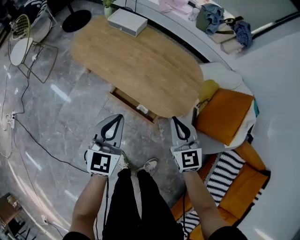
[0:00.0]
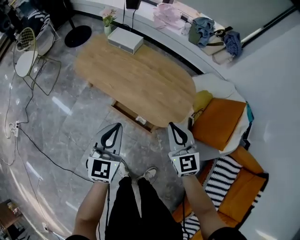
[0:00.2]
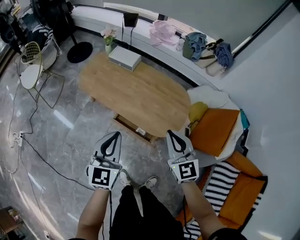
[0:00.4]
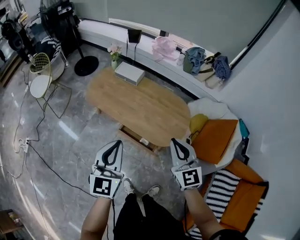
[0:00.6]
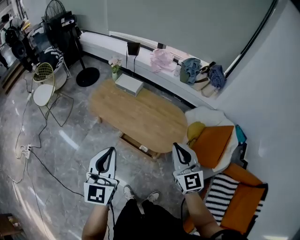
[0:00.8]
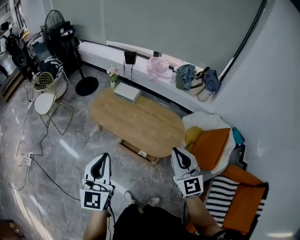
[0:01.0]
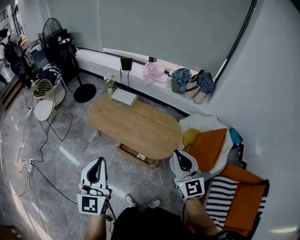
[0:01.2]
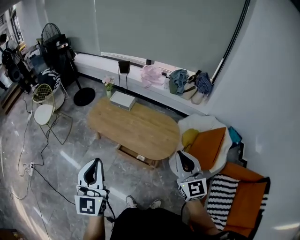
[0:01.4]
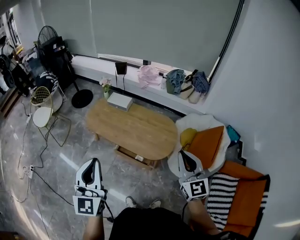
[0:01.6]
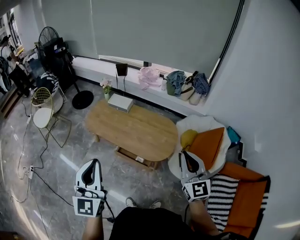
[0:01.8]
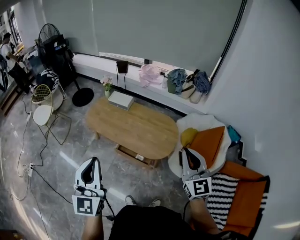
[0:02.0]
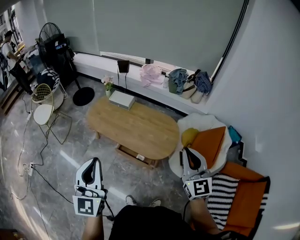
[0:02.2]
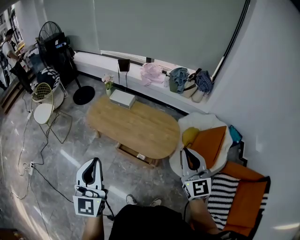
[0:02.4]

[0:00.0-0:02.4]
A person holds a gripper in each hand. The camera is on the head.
0:00.0 to 0:01.2: The grippers both shift upward by about 35 cm.
0:01.2 to 0:02.4: The right gripper changes place by about 5 cm.

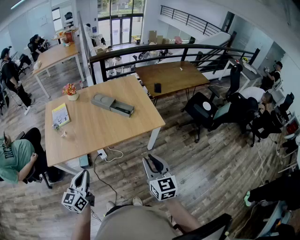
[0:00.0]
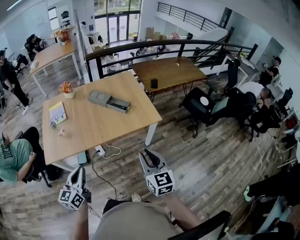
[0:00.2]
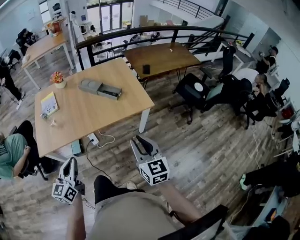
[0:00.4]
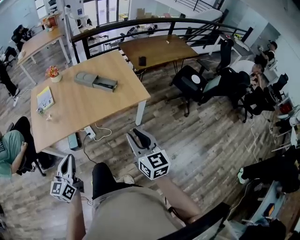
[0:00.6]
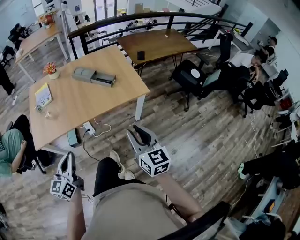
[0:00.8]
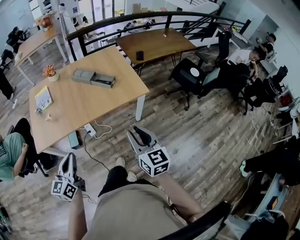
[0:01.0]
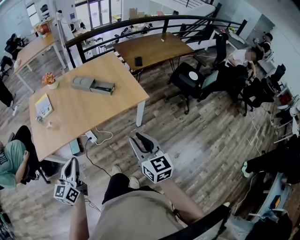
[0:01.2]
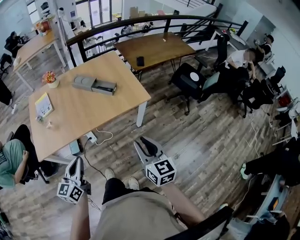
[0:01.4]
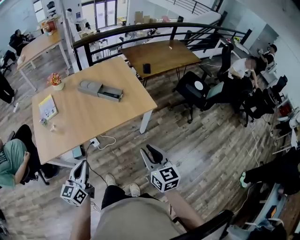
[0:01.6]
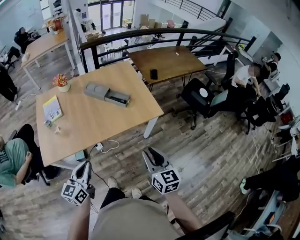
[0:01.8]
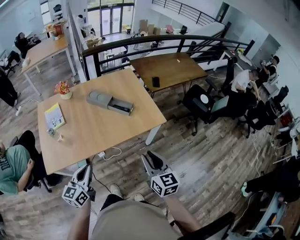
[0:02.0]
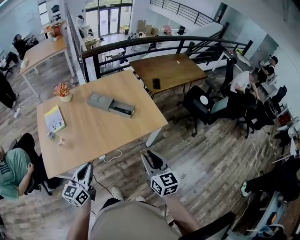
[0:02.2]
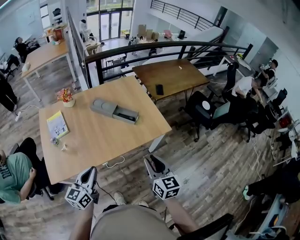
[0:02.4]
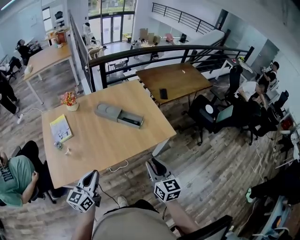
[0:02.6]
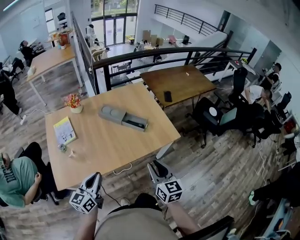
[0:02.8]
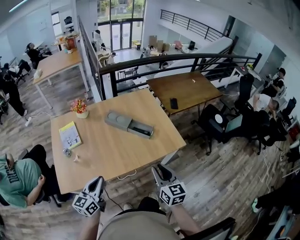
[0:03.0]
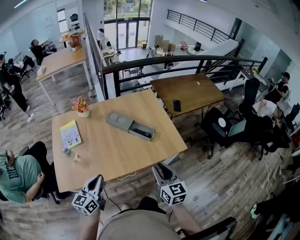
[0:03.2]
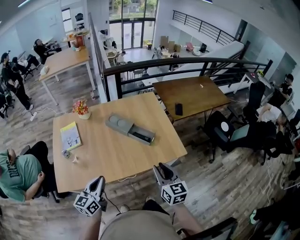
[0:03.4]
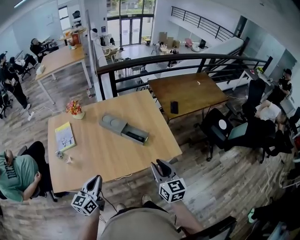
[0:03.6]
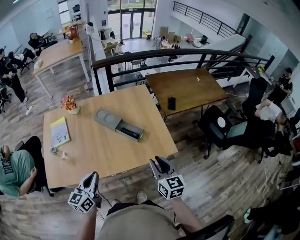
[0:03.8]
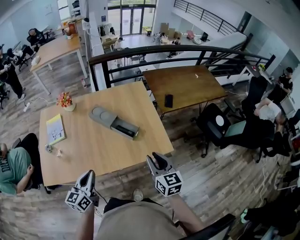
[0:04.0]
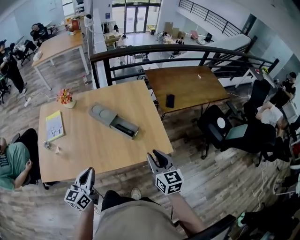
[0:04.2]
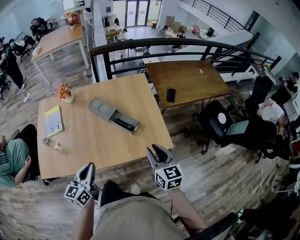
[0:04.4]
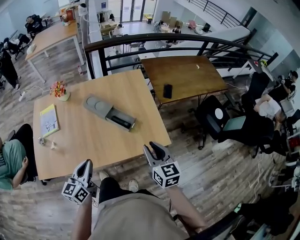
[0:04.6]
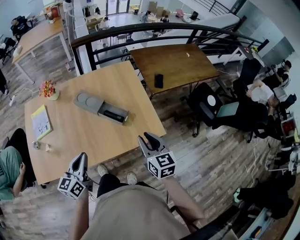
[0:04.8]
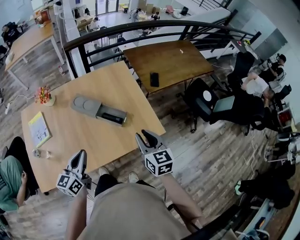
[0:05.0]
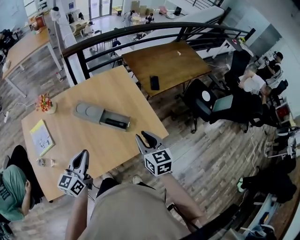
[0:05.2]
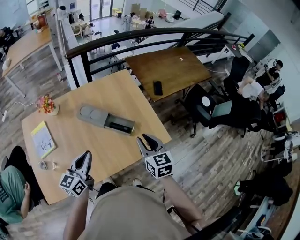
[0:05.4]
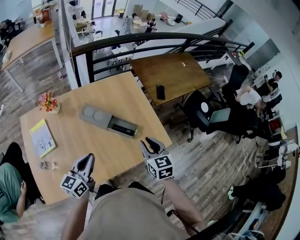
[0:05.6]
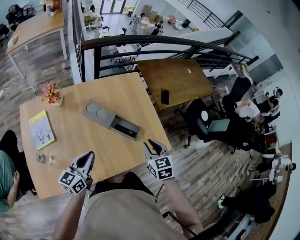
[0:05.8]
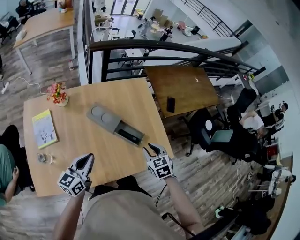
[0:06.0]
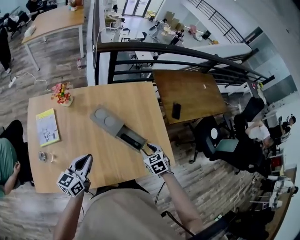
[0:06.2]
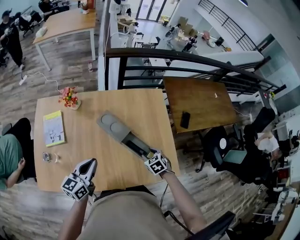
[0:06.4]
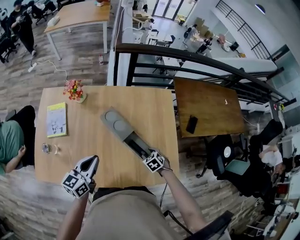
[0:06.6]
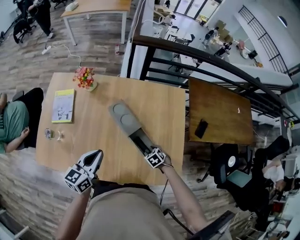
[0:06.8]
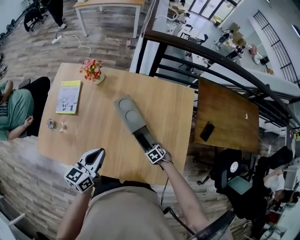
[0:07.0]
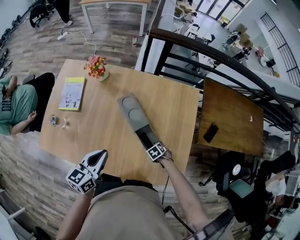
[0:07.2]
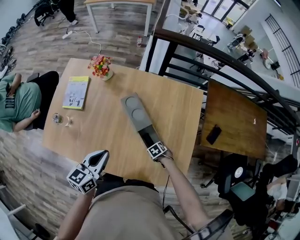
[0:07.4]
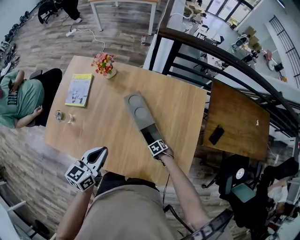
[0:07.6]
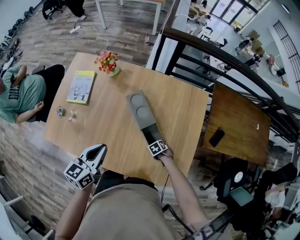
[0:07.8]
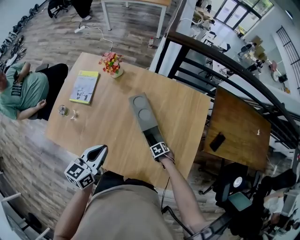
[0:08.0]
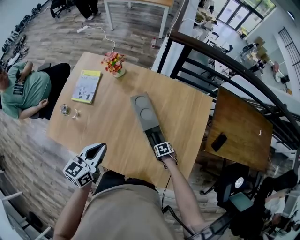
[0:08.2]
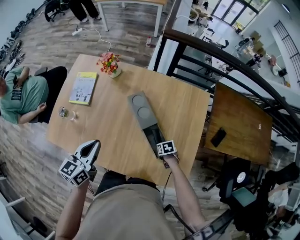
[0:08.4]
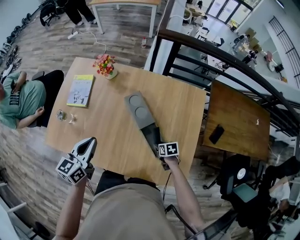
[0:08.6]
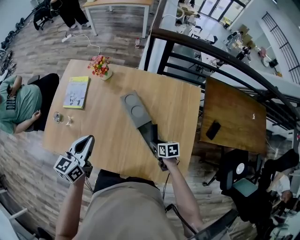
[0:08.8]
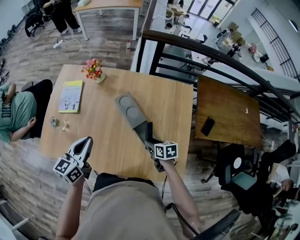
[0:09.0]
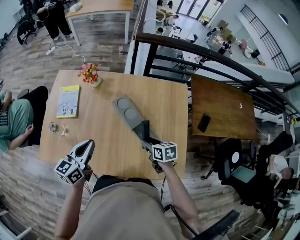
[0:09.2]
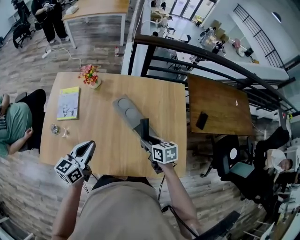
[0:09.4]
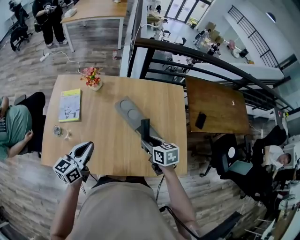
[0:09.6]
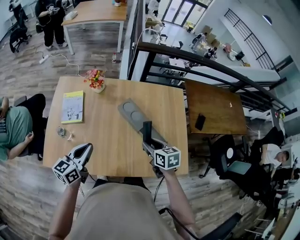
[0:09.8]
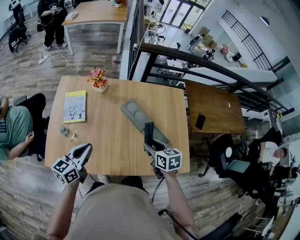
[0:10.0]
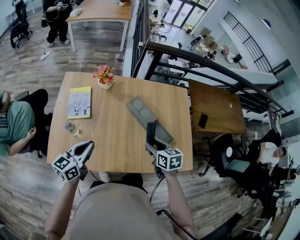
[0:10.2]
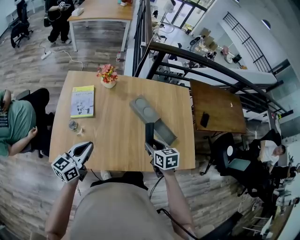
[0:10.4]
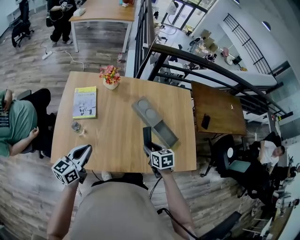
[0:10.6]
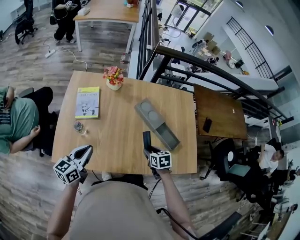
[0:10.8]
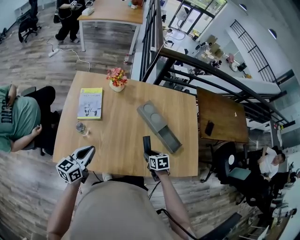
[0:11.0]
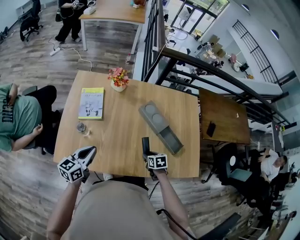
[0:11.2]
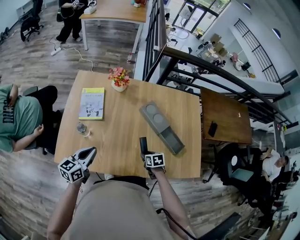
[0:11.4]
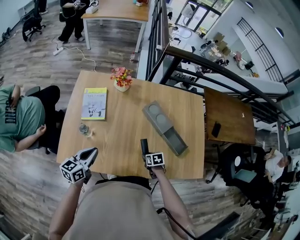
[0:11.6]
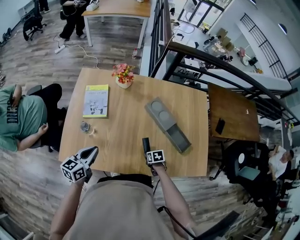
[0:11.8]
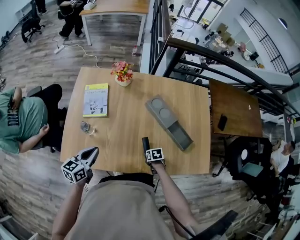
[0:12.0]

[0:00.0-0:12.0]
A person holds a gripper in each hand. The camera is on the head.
0:00.0 to 0:01.6: The left gripper shifts by about 5 cm.
0:01.6 to 0:03.0: Both grippers move to the left and forward, roughly 20 cm.
0:03.0 to 0:04.4: The right gripper travels forward and to the right by some 20 cm; the left gripper is displaced to the right and forward by roughly 20 cm.
0:04.4 to 0:06.0: The left gripper travels forward and to the left by about 20 cm. The right gripper goes about 20 cm to the left, forward and downward, and rotates roughly 30 degrees.
0:06.0 to 0:07.6: The left gripper moves about 5 cm, and rotates roughly 30 degrees, while the right gripper goes some 35 cm downward, and tilts its fingers some 30 degrees downward.
0:07.6 to 0:09.0: The left gripper shifts by roughly 5 cm. The right gripper travels upward by some 20 cm, and tilts its fingers roughly 30 degrees upward.
0:09.0 to 0:10.4: The left gripper travels to the left by about 20 cm, while the right gripper shifts some 25 cm to the left and upward, and turns by approximately 20 degrees.
0:10.4 to 0:12.0: The left gripper heads downward, covering roughly 10 cm, while the right gripper moves downward, roughly 30 cm, and changes its angle by some 30 degrees.

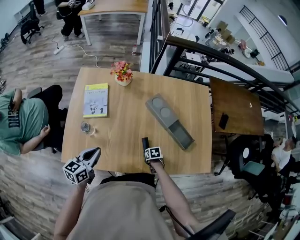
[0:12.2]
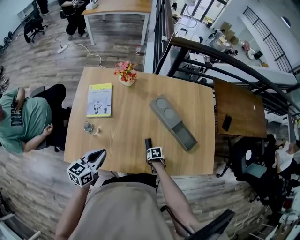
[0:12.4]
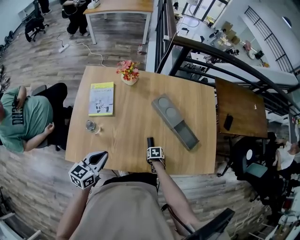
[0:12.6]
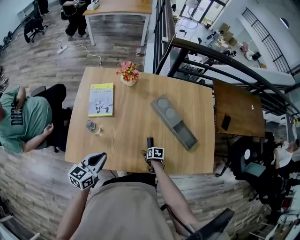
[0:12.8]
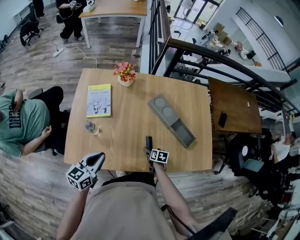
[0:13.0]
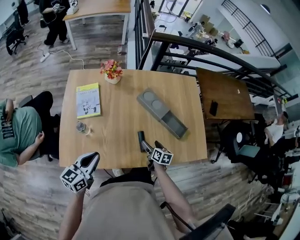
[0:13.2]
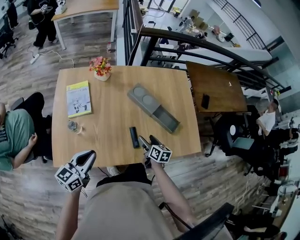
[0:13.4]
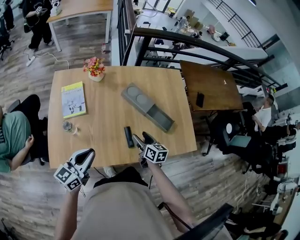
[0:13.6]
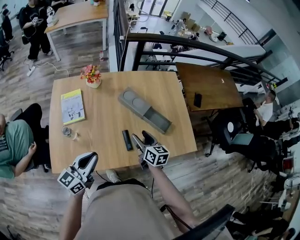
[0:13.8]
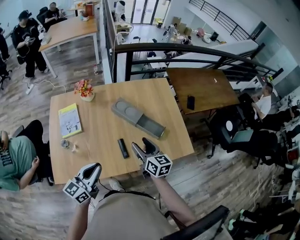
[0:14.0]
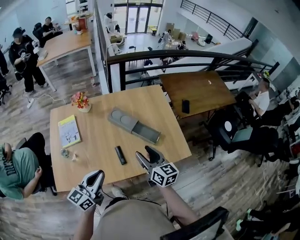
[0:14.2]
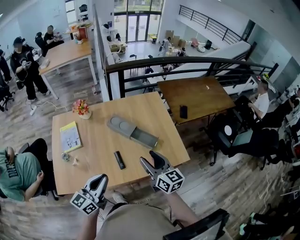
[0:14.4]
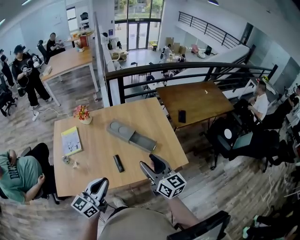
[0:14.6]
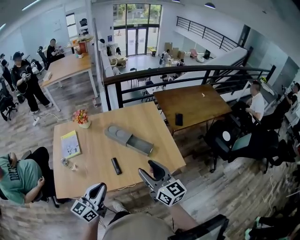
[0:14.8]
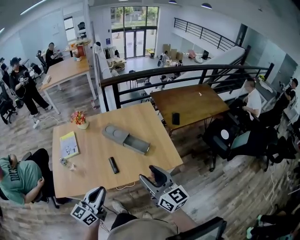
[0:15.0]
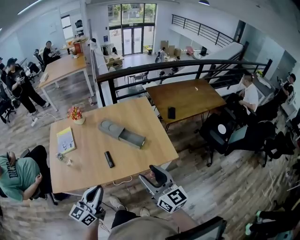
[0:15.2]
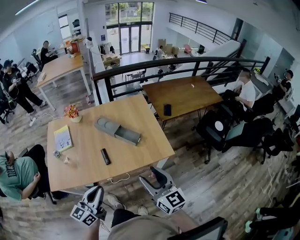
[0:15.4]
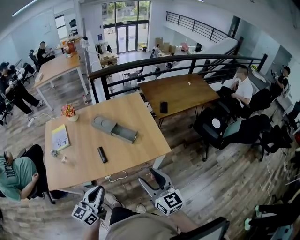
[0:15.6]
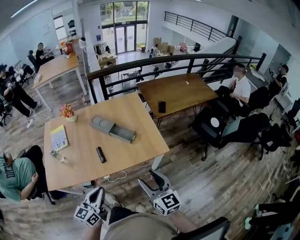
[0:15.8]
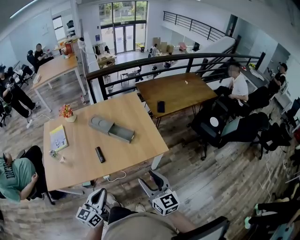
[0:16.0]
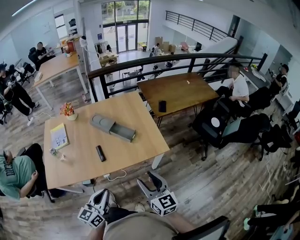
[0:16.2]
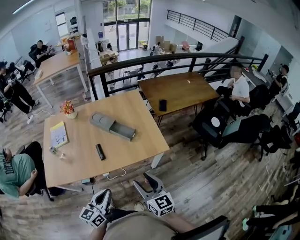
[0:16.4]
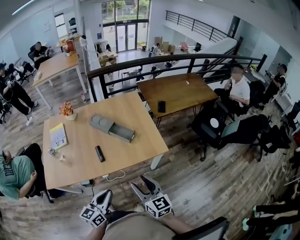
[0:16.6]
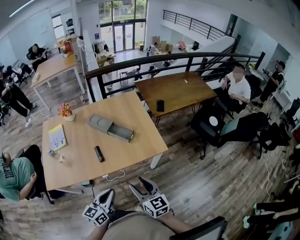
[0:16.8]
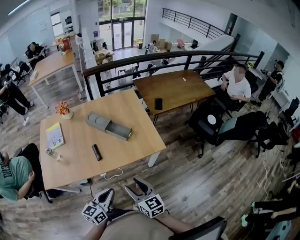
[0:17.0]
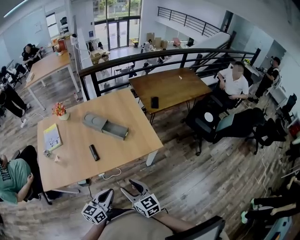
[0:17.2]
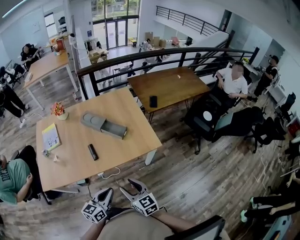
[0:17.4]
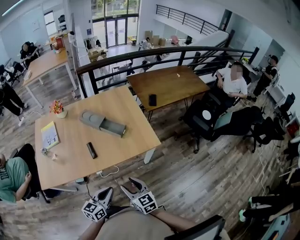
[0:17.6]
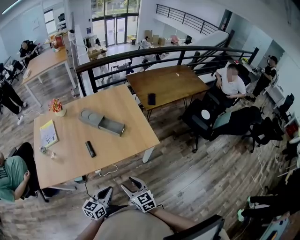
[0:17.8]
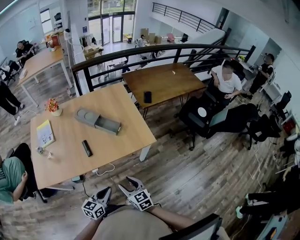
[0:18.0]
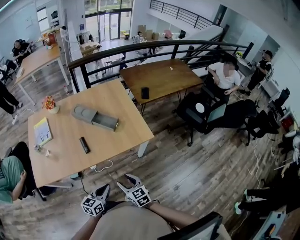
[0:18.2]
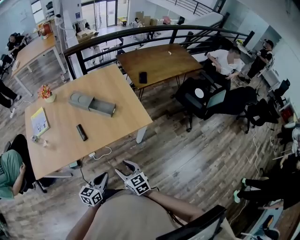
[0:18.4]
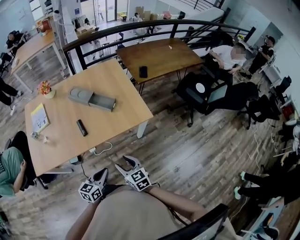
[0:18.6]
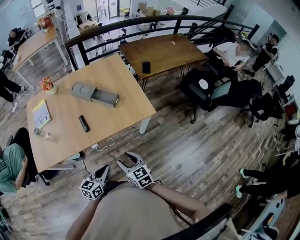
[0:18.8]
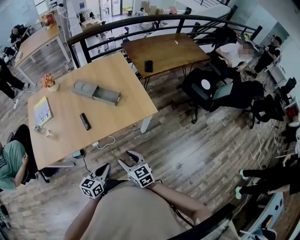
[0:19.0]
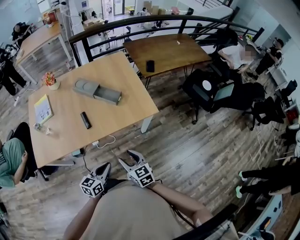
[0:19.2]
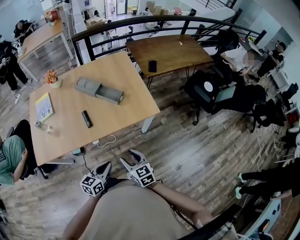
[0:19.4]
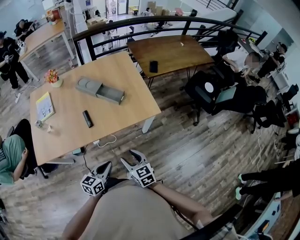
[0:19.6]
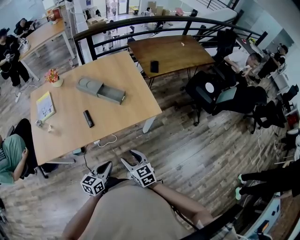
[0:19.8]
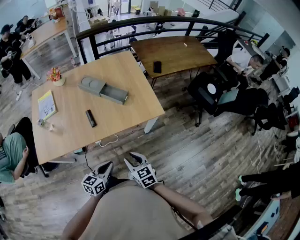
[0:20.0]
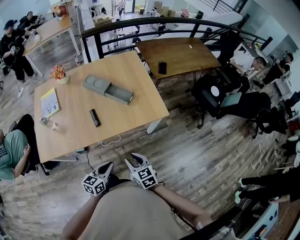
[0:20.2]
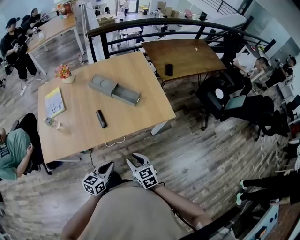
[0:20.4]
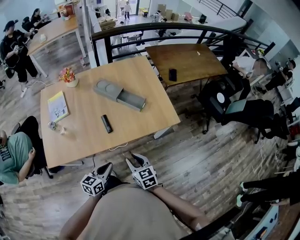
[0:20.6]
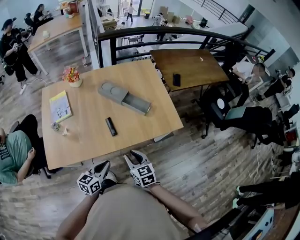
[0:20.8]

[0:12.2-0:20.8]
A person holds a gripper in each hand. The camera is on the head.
0:12.2 to 0:13.6: The right gripper goes roughly 25 cm upward, tips its fingers upward by approximately 40 degrees, and opens up; the left gripper heads upward, covering about 5 cm, and swivels about 20 degrees.
0:13.6 to 0:15.0: The left gripper is displaced to the right, backward and upward by about 30 cm. Meanwhile the right gripper heads upward, to the right and backward, covering approximately 40 cm, and tilts its fingers some 30 degrees upward.
0:15.0 to 0:16.6: The left gripper shifts about 15 cm to the right, backward and downward. The right gripper heads downward and backward, covering roughly 15 cm.
0:16.6 to 0:18.0: The two grippers go approximately 10 cm downward.
0:18.0 to 0:19.4: There are only small adjustments of the grippers.
0:19.4 to 0:20.8: The left gripper moves to the left, roughly 20 cm, while the right gripper heads to the left and forward, covering about 20 cm.
